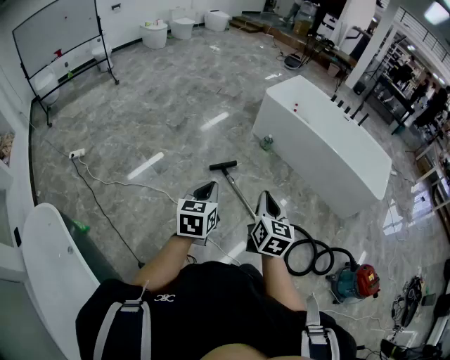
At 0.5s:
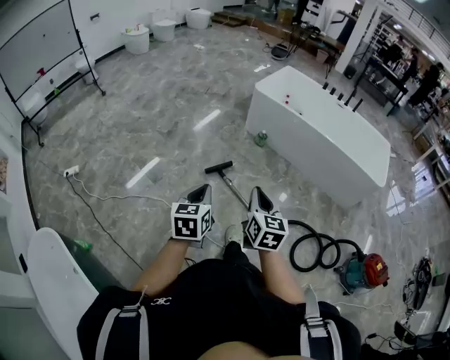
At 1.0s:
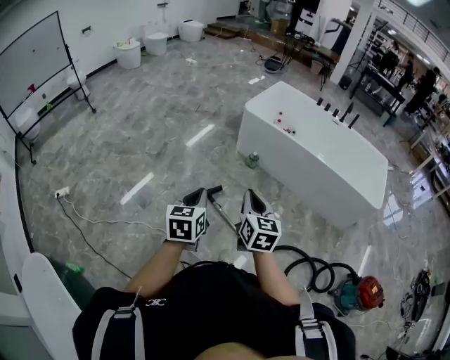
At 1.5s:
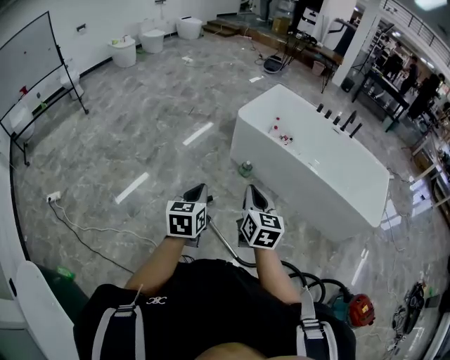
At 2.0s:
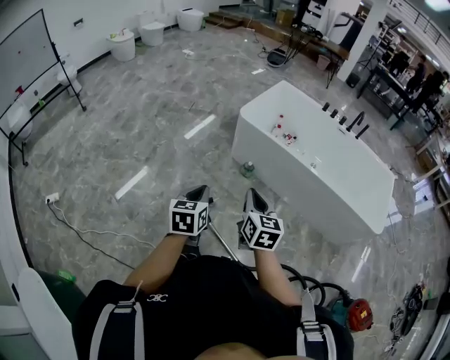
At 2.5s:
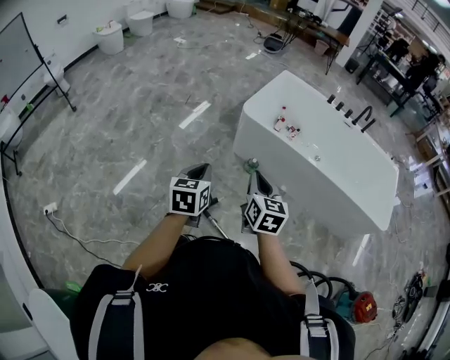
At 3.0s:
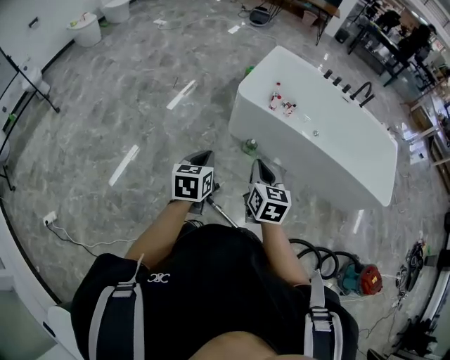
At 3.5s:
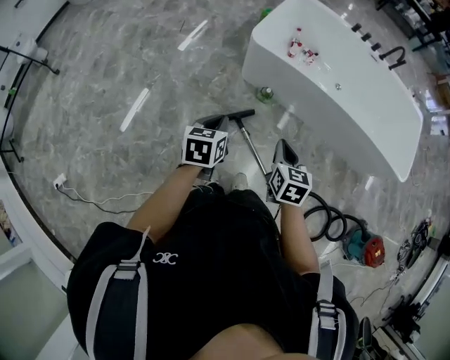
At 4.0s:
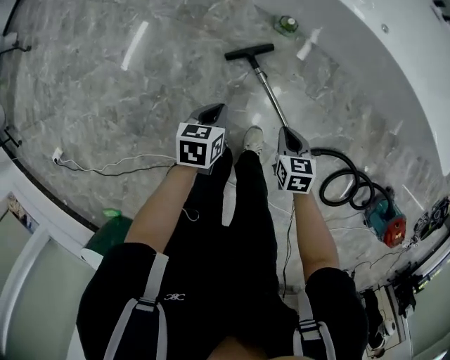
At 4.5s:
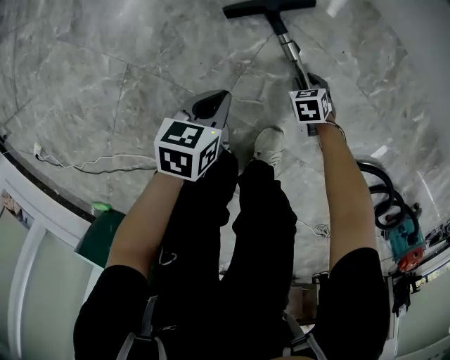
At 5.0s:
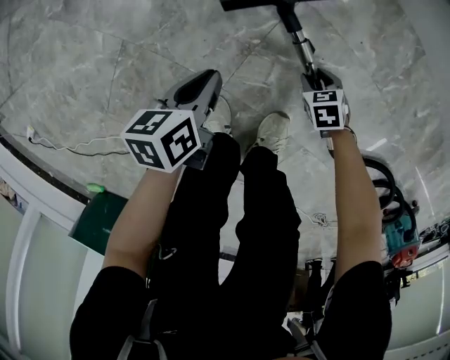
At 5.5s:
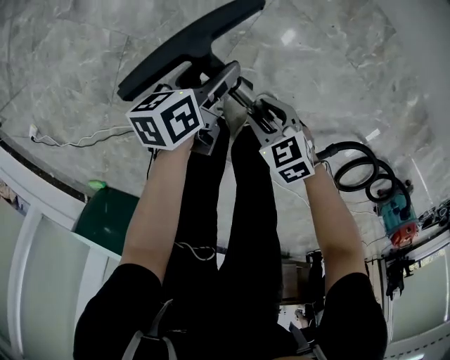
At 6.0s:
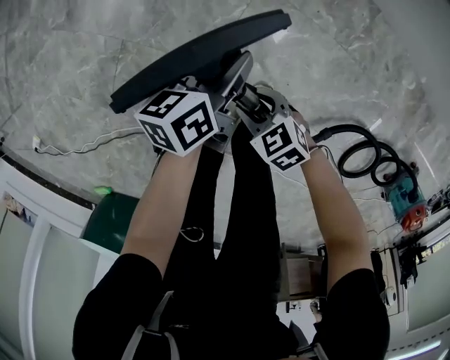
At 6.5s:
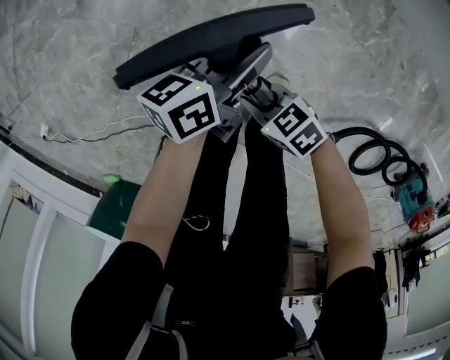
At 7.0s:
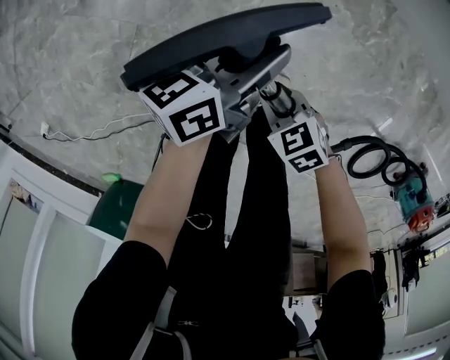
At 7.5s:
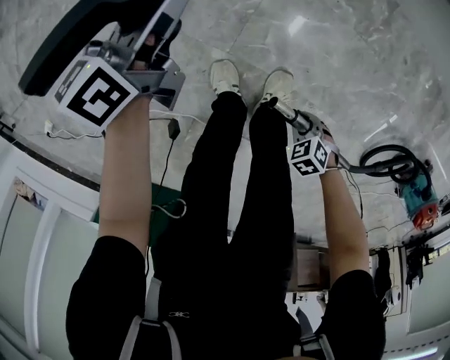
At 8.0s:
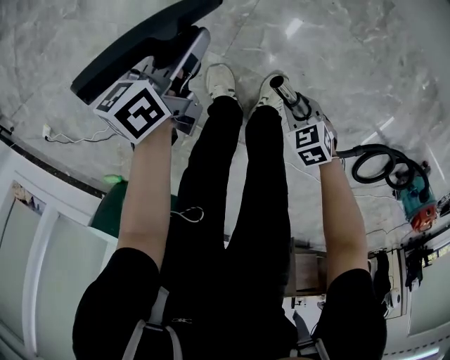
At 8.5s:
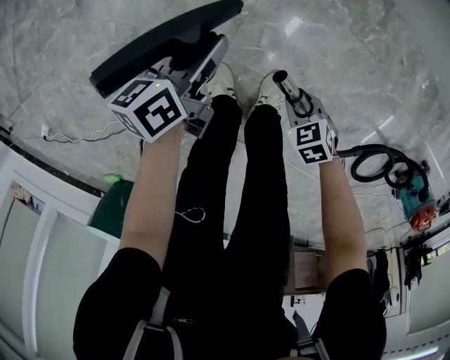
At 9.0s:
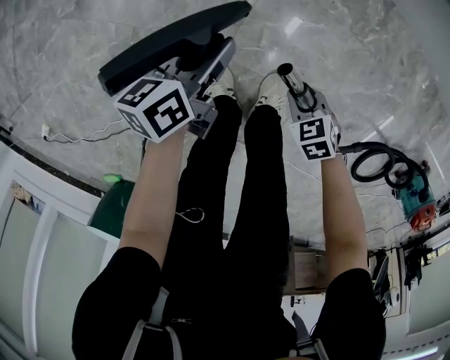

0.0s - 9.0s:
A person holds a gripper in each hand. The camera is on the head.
0.0s - 2.0s: The two grippers travel together, forward, about 50 cm.
2.0s - 4.5s: Both grippers travel together downward, some 90 cm. The left gripper rotates roughly 40 degrees, while the right gripper tilts its fingers approximately 60 degrees downward, and opens.
4.5s - 7.0s: The two grippers go about 25 cm upward. The left gripper angles its fingers upward, by approximately 40 degrees, and opens and closes again. The right gripper turns by some 30 degrees, and closes its fingers.

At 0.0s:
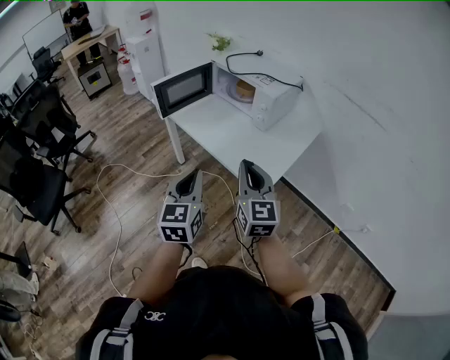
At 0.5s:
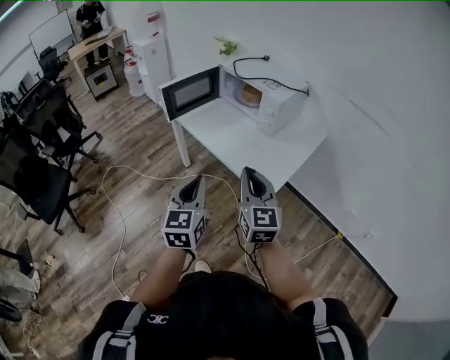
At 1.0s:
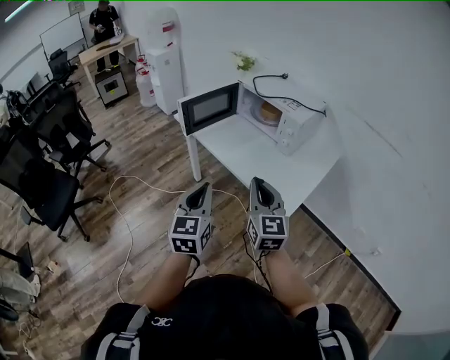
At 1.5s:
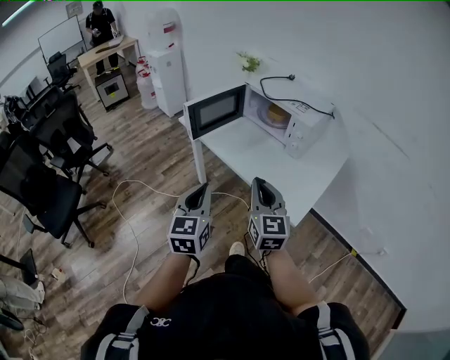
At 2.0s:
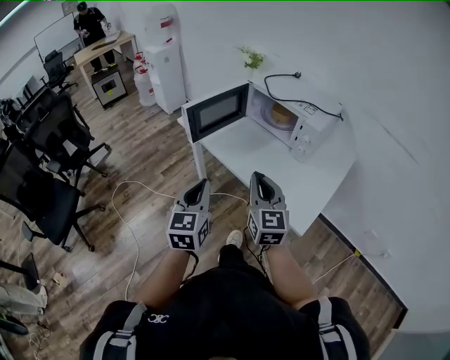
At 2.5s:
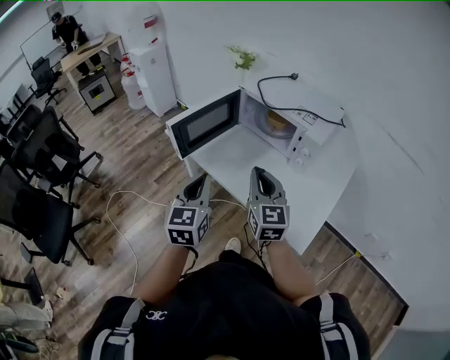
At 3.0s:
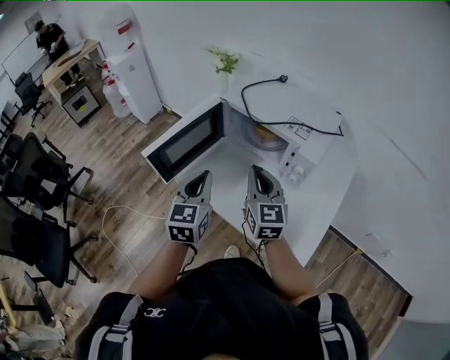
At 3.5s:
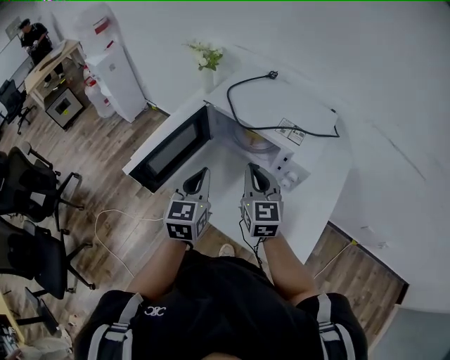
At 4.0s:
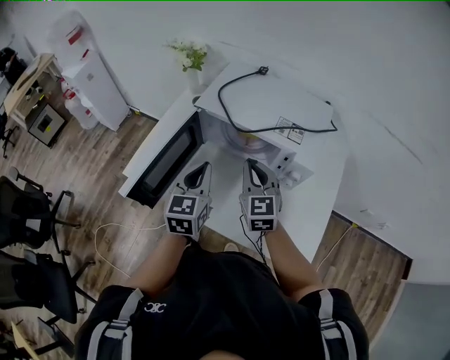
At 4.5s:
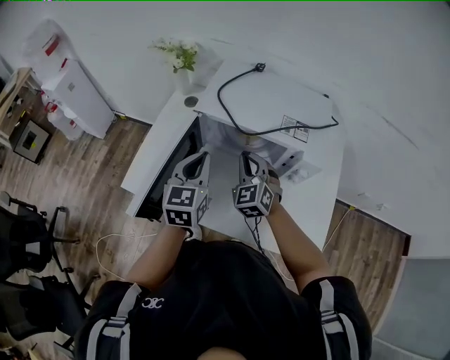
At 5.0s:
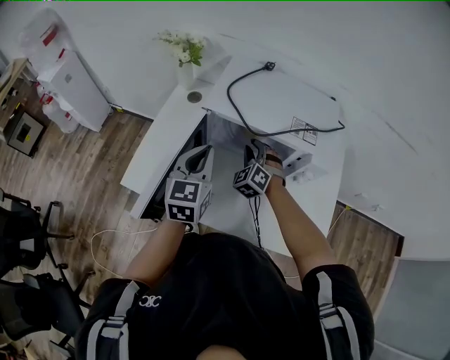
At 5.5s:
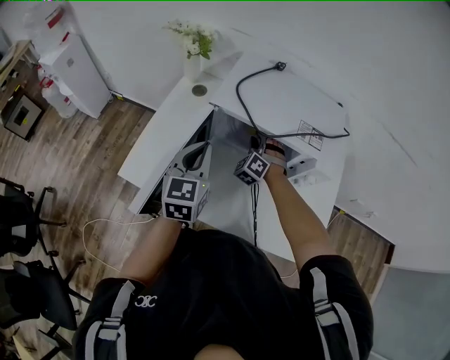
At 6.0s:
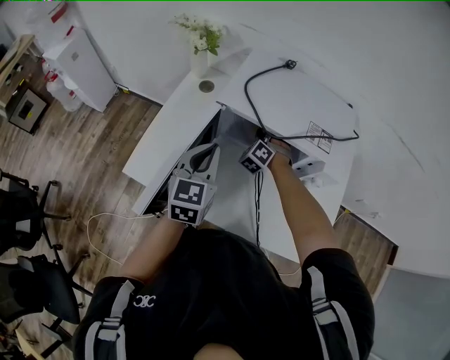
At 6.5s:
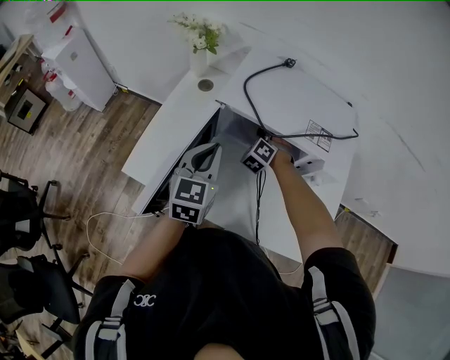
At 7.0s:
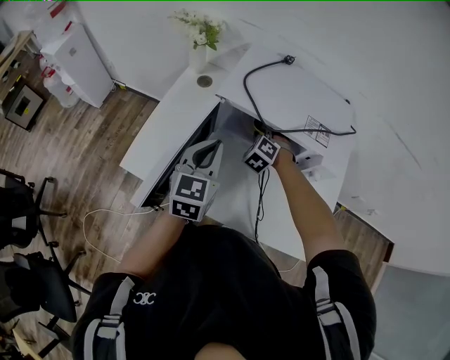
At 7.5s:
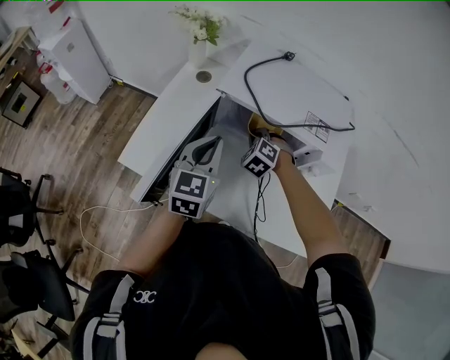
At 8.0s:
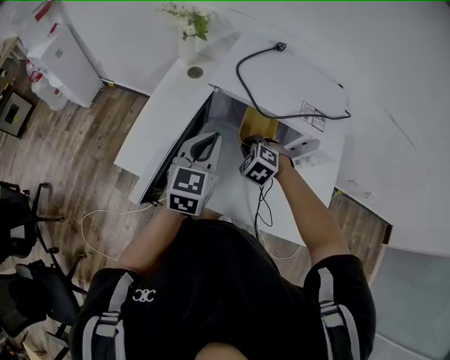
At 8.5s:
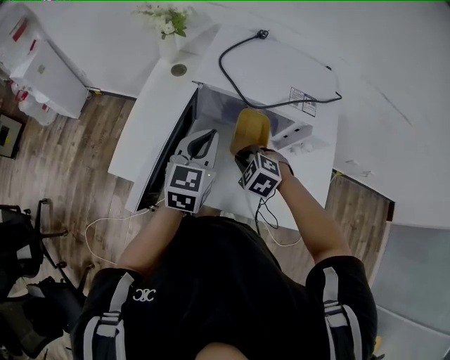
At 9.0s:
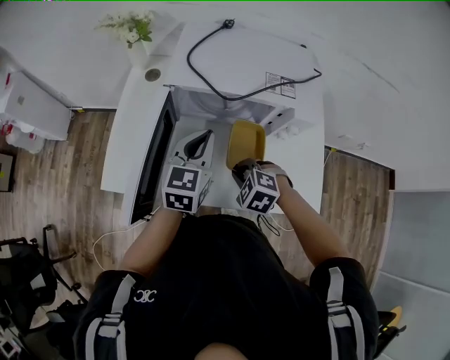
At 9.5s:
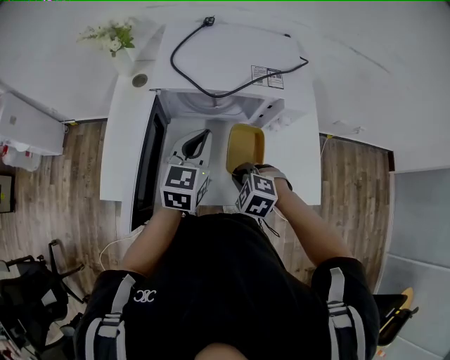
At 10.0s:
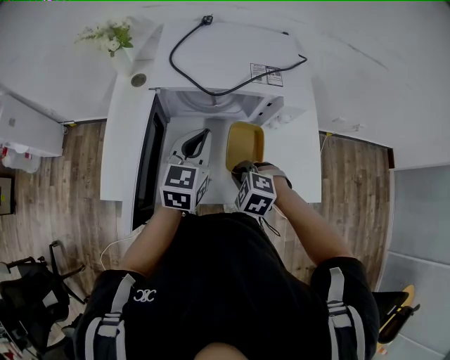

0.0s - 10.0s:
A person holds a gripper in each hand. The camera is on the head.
0.0s - 2.0s: Both grippers move forward and to the left, approximately 20 cm.
2.0s - 4.0s: Both grippers travel together forward, some 40 cm. The right gripper changes its angle by about 20 degrees. The left gripper changes its angle by roughly 20 degrees.
4.0s - 6.0s: The right gripper goes approximately 25 cm forward and downward, turns by roughly 60 degrees, and opens. Meanwhile the left gripper heads to the left and forward, covering about 10 cm.
6.0s - 8.0s: The right gripper is displaced backward by roughly 15 cm, swivels approximately 30 degrees, and closes.
8.0s - 10.0s: The right gripper is displaced backward by about 15 cm. Meanwhile the left gripper travels to the right by some 10 cm.

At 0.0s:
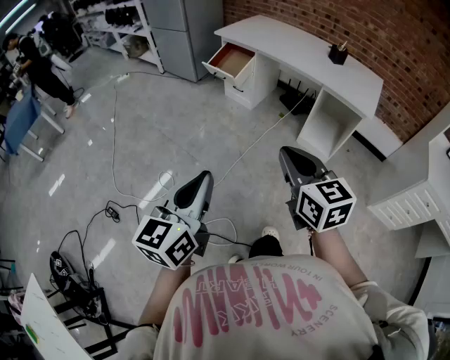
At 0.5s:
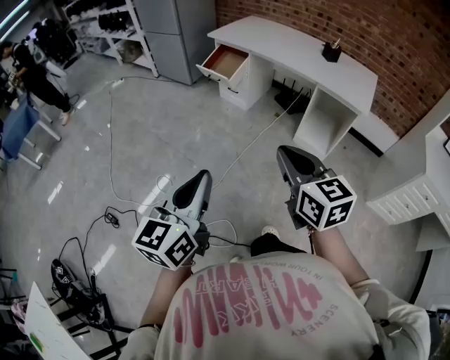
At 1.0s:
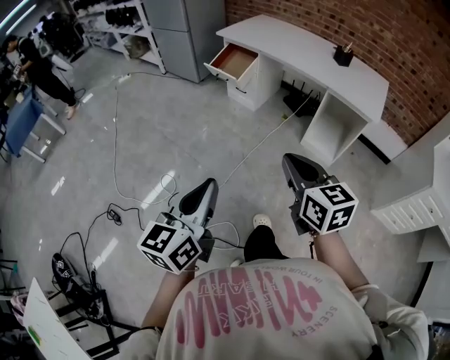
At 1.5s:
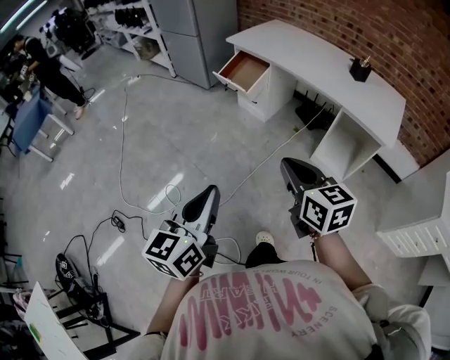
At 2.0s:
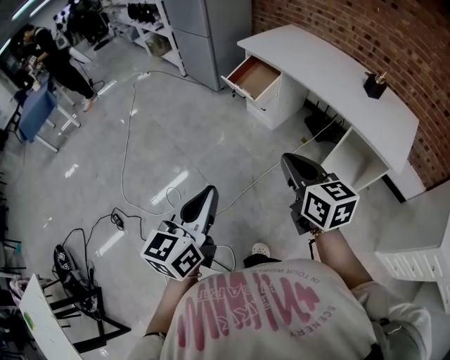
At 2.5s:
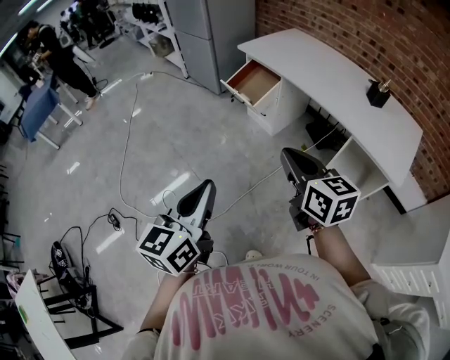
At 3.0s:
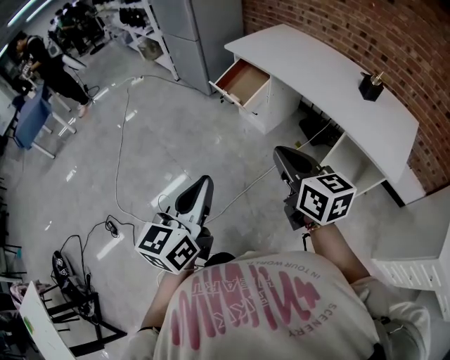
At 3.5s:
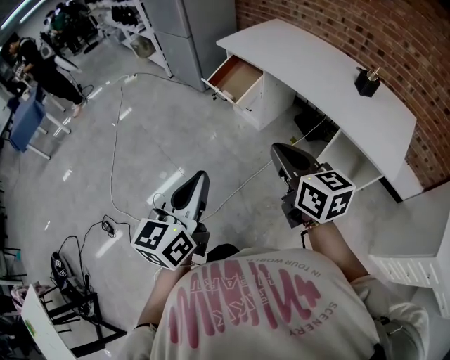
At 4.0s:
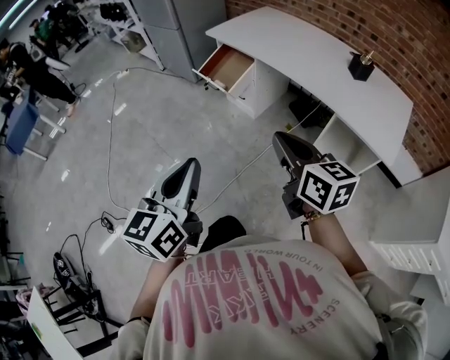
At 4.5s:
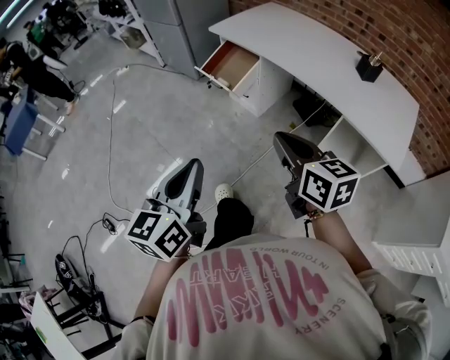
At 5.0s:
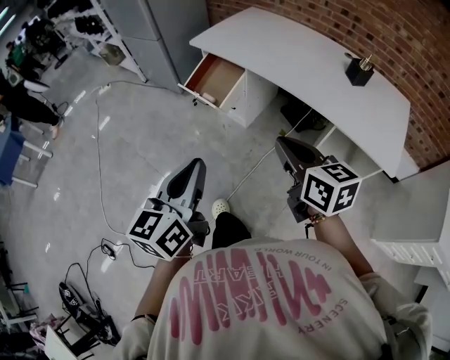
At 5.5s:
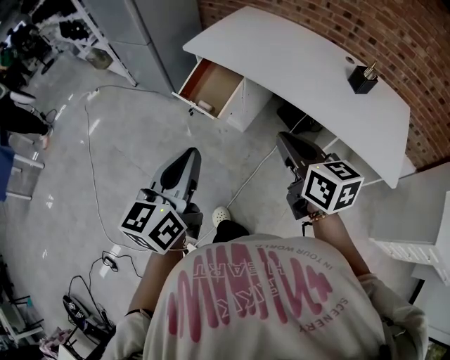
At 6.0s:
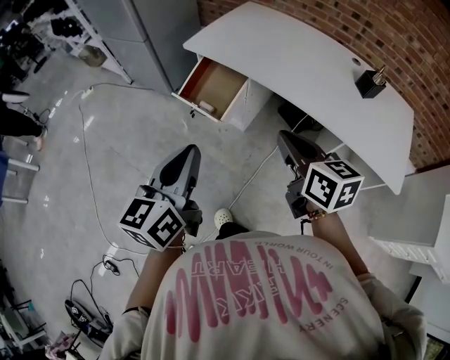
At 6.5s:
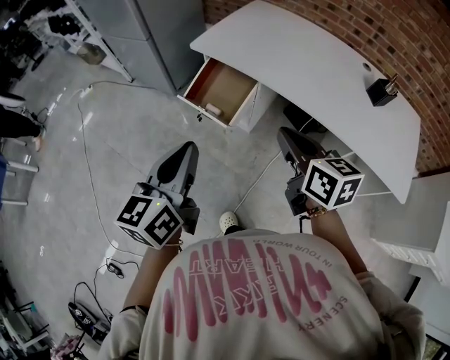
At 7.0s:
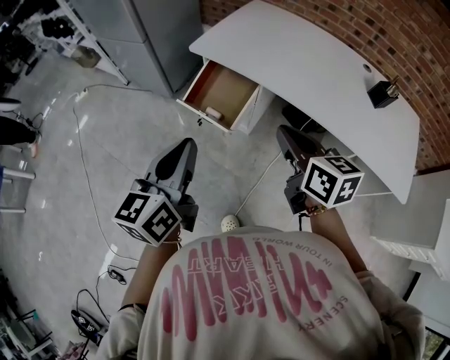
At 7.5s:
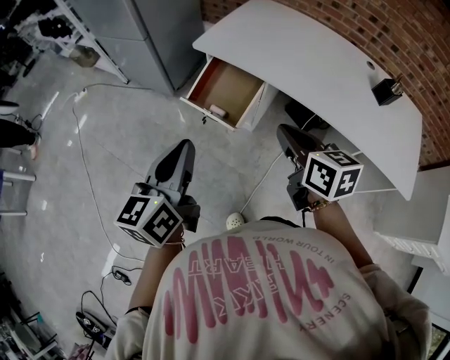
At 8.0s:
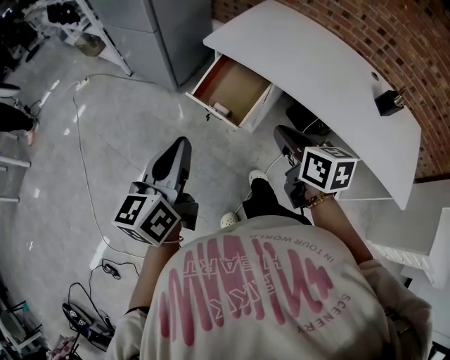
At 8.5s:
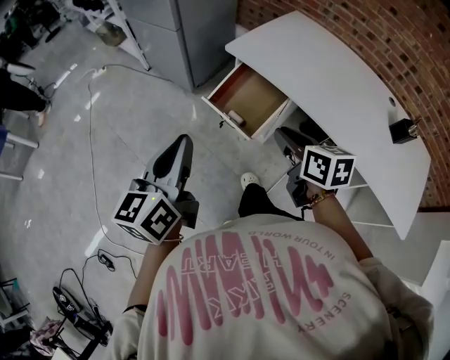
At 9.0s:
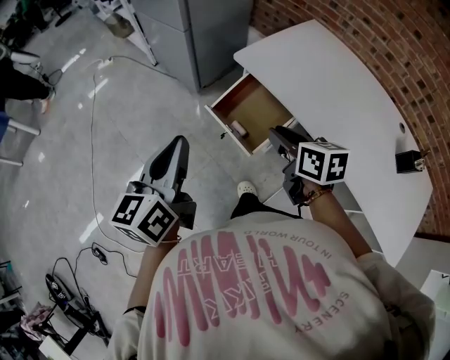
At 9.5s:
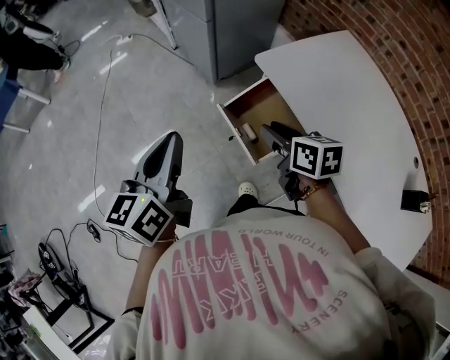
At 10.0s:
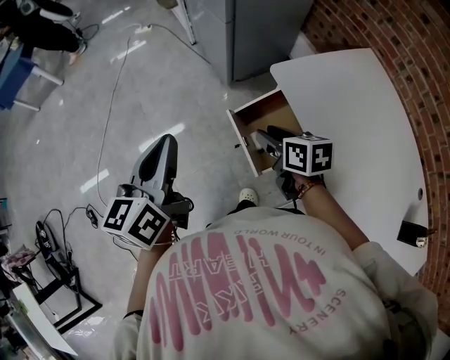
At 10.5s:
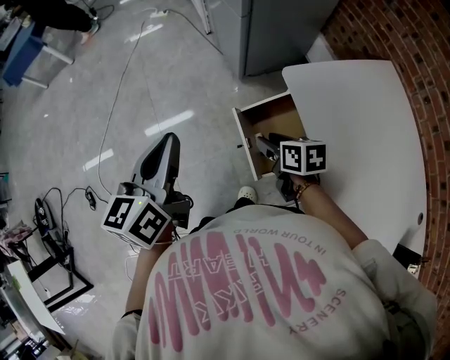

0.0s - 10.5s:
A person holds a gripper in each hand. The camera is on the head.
0.0s - 2.0s: The grippers both shift forward by some 25 cm.
2.0s - 4.0s: The left gripper moves forward and to the right, approximately 15 cm. Meanwhile the right gripper heads to the right and forward, covering some 15 cm.
4.0s - 6.5s: Both grippers move forward, approximately 35 cm.
6.5s - 8.5s: The right gripper moves forward, to the left and downward, approximately 15 cm. Meanwhile the left gripper heads to the left and forward, covering approximately 15 cm.
8.5s - 10.5s: The left gripper ends up some 15 cm from where it was, and turns by approximately 30 degrees. Meanwhile the right gripper changes place by approximately 30 cm, and changes its angle by some 40 degrees.
